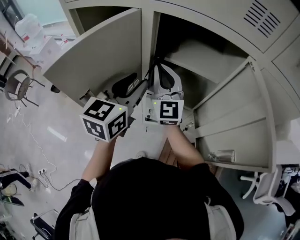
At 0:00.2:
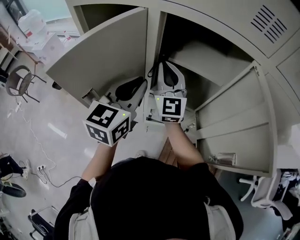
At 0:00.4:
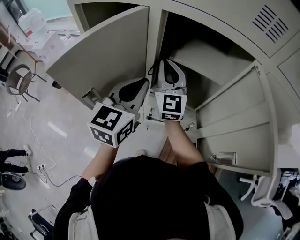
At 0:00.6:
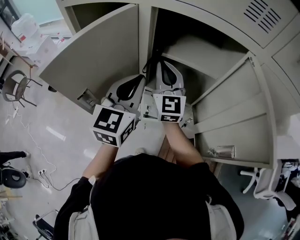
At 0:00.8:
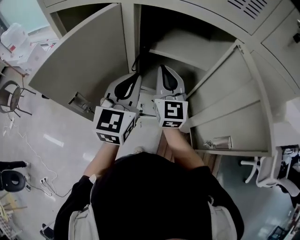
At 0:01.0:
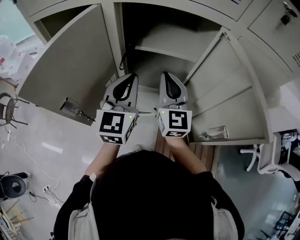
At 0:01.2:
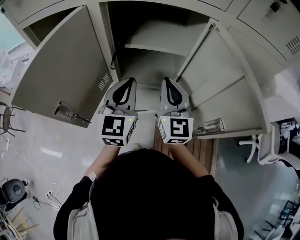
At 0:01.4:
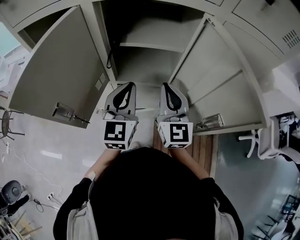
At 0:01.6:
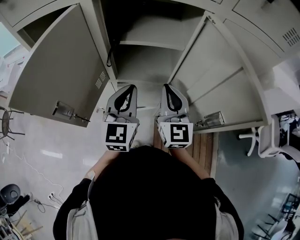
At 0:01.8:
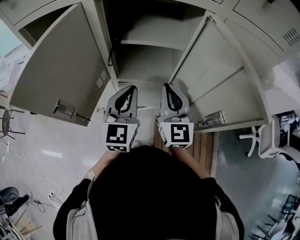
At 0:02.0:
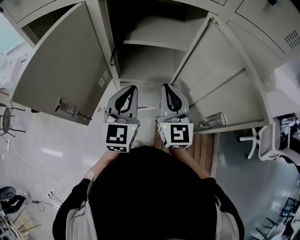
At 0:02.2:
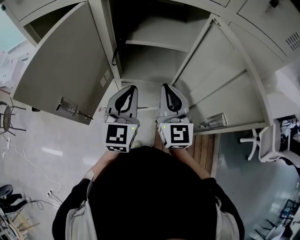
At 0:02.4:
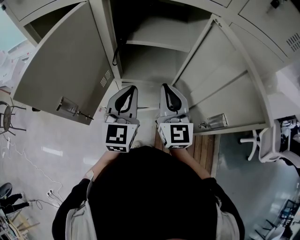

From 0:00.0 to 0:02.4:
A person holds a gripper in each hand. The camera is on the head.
From 0:00.0 to 0:01.2: The right gripper goes approximately 15 cm to the right and backward, and changes its angle by about 20 degrees; the left gripper shifts approximately 5 cm to the right, and closes its fingers.
From 0:01.2 to 0:02.4: The grippers move only a little.

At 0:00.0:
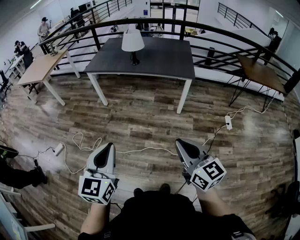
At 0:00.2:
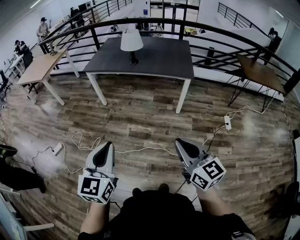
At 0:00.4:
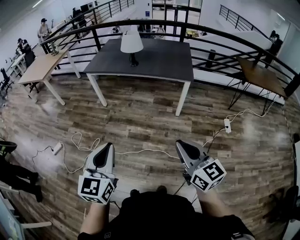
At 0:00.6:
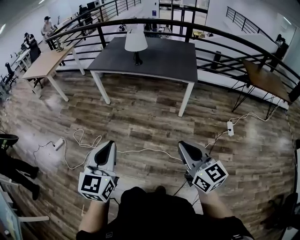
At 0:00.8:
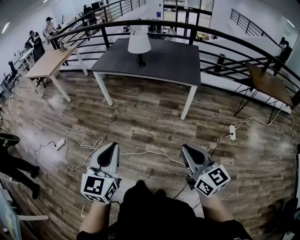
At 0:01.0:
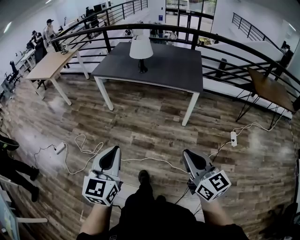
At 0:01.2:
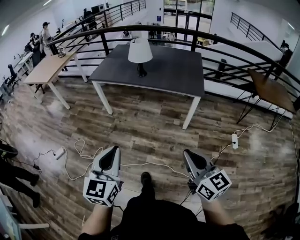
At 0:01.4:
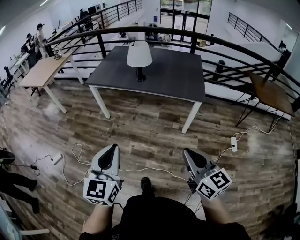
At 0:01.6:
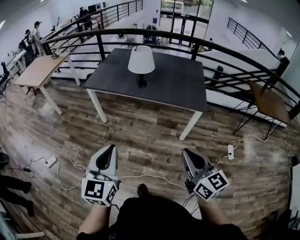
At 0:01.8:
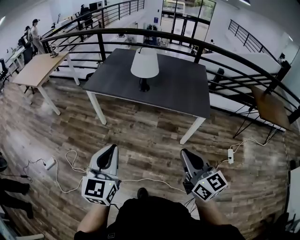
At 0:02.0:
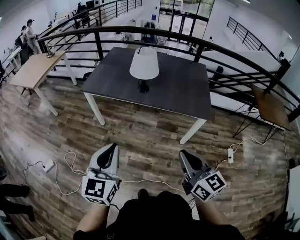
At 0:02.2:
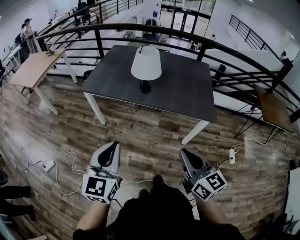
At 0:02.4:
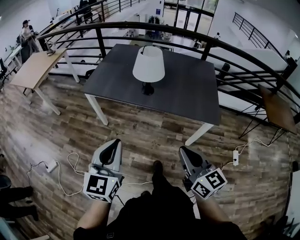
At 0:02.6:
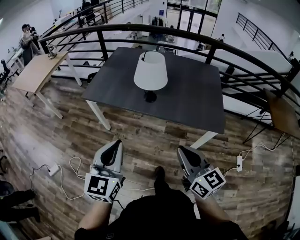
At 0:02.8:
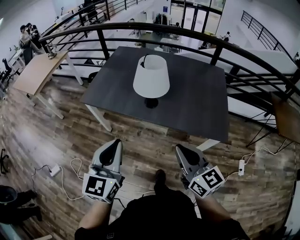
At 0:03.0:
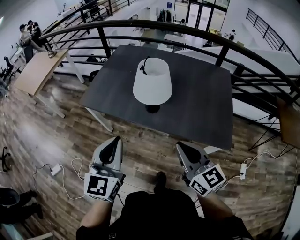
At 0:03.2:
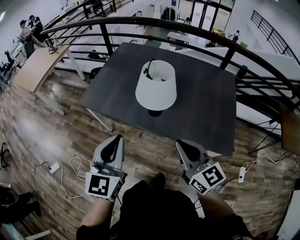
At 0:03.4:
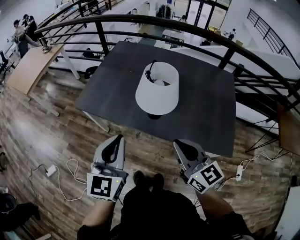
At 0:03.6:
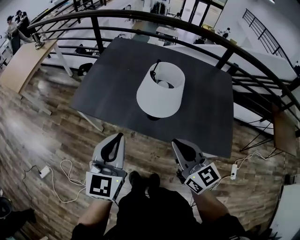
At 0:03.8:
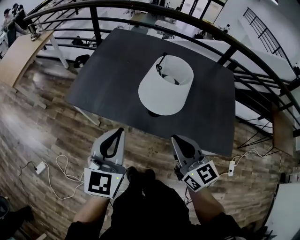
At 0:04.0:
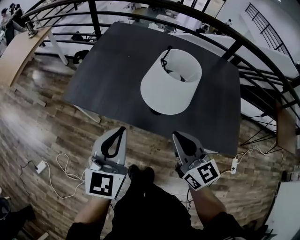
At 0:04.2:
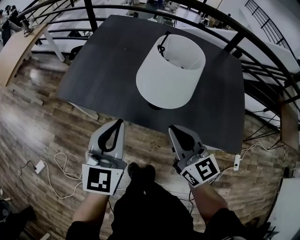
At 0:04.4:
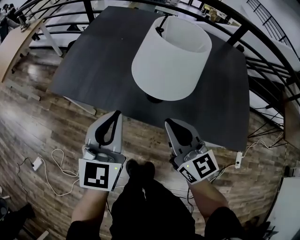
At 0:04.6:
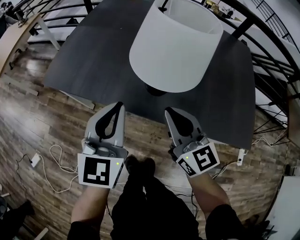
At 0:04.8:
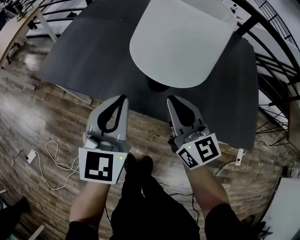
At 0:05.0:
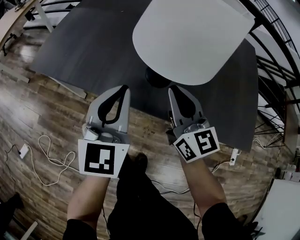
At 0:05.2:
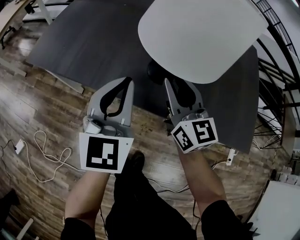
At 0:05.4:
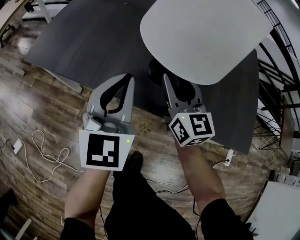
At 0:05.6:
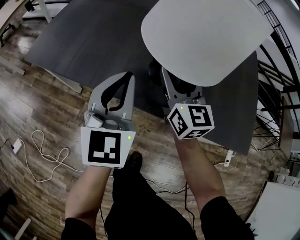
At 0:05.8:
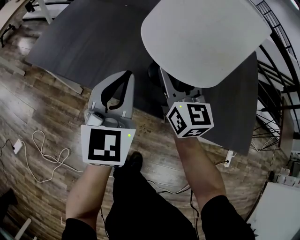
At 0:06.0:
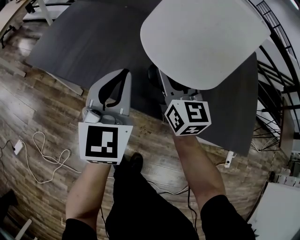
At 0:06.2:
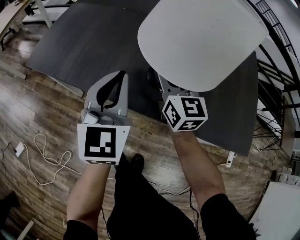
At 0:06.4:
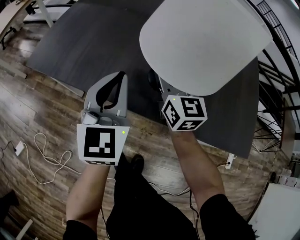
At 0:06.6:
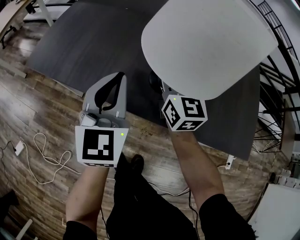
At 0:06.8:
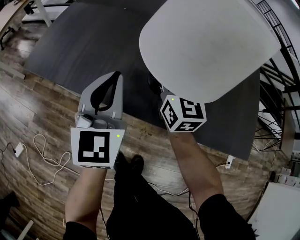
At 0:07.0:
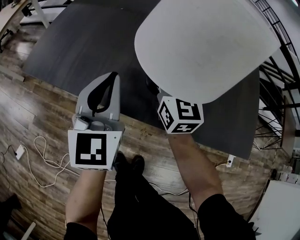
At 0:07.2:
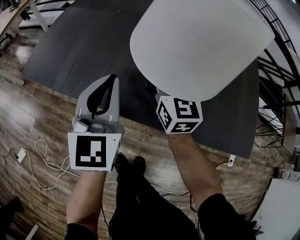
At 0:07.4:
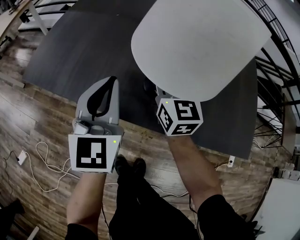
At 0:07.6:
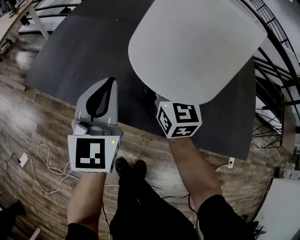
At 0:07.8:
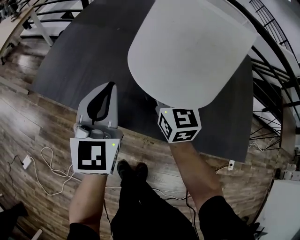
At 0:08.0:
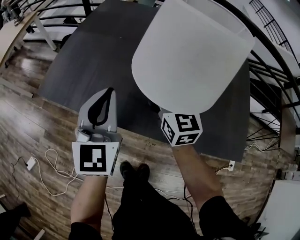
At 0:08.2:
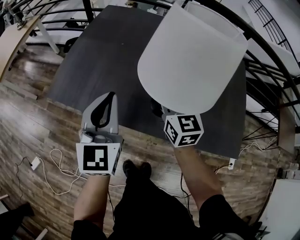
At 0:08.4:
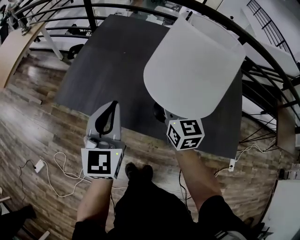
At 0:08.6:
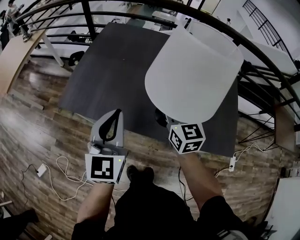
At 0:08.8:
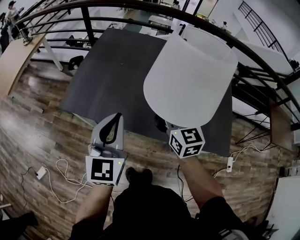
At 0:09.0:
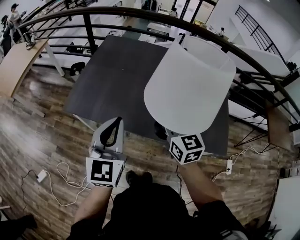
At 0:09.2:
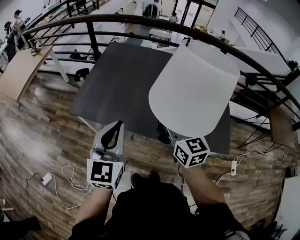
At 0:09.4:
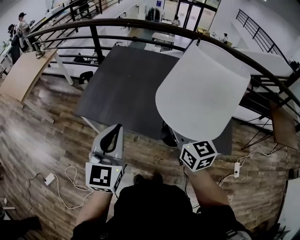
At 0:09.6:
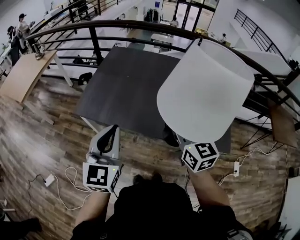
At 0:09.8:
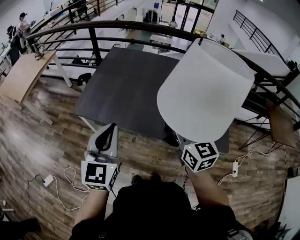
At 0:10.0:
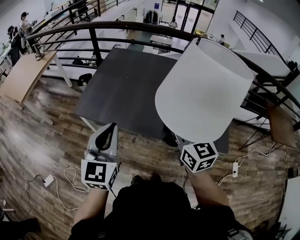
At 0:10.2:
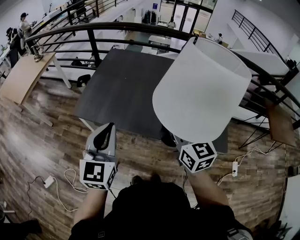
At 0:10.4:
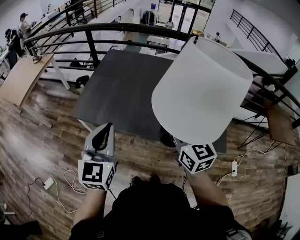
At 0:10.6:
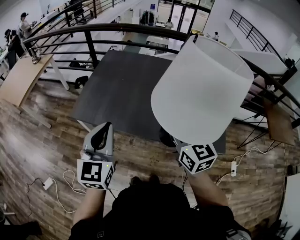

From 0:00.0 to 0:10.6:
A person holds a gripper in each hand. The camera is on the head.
From 0:00.0 to 0:01.6: Both grippers move forward, approximately 25 cm.
From 0:01.6 to 0:03.0: Both grippers travel together forward, approximately 40 cm.
From 0:03.0 to 0:04.6: The grippers both shift forward and downward by about 30 cm.
From 0:04.6 to 0:06.0: The left gripper goes approximately 10 cm forward and downward; the right gripper moves forward and downward, about 15 cm, and opens up.
From 0:06.0 to 0:07.6: The right gripper closes its fingers.
From 0:07.6 to 0:09.0: The two grippers go some 25 cm upward and backward.
From 0:09.0 to 0:10.6: The right gripper moves backward and upward, roughly 15 cm; the left gripper goes about 5 cm backward.

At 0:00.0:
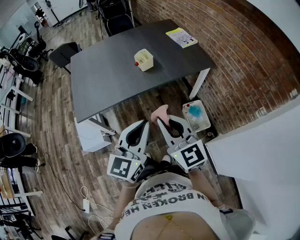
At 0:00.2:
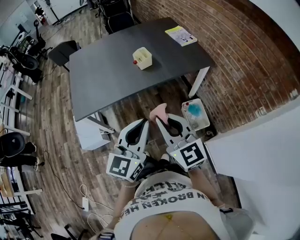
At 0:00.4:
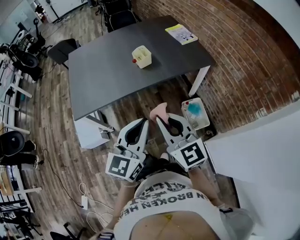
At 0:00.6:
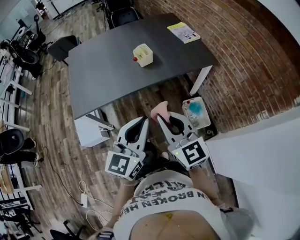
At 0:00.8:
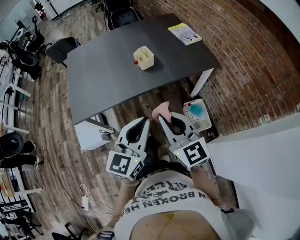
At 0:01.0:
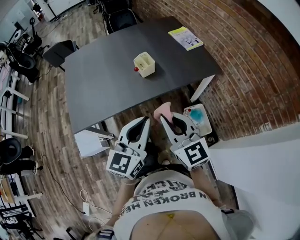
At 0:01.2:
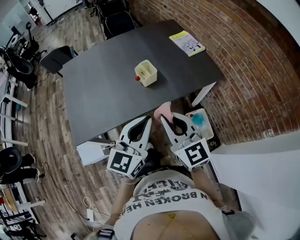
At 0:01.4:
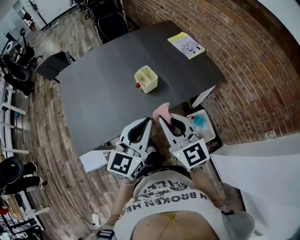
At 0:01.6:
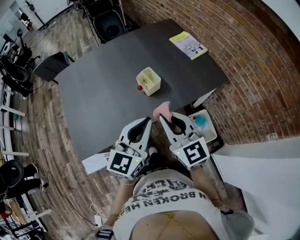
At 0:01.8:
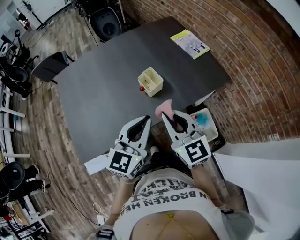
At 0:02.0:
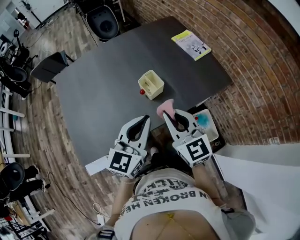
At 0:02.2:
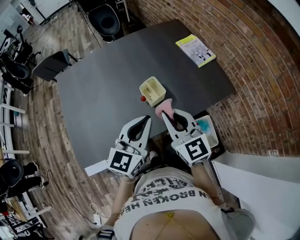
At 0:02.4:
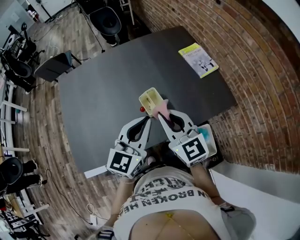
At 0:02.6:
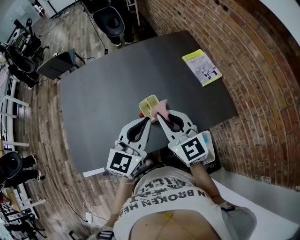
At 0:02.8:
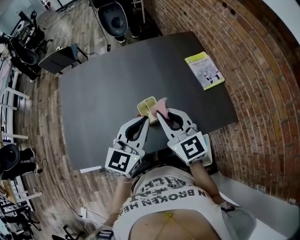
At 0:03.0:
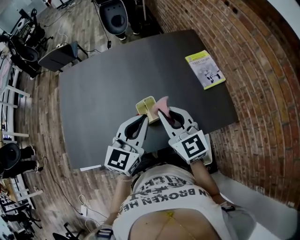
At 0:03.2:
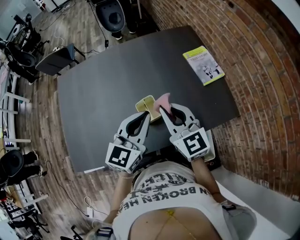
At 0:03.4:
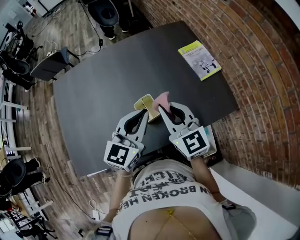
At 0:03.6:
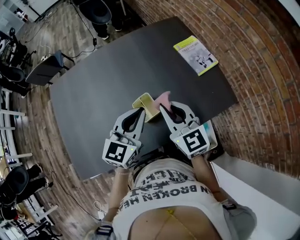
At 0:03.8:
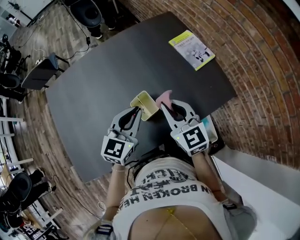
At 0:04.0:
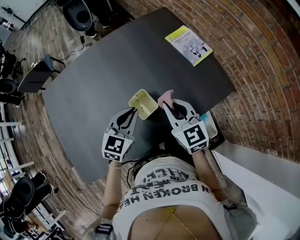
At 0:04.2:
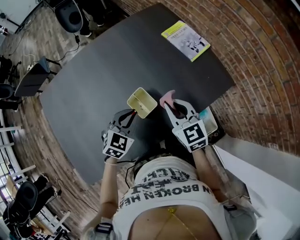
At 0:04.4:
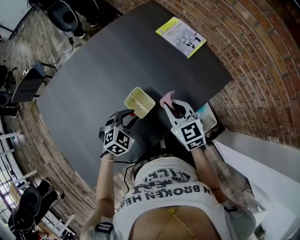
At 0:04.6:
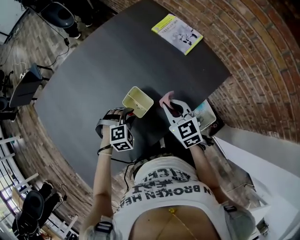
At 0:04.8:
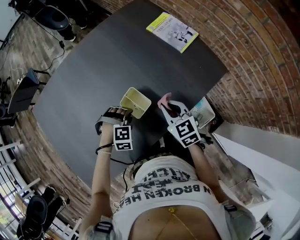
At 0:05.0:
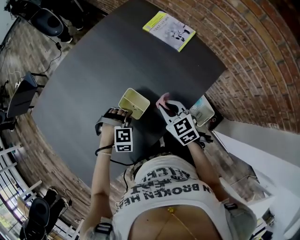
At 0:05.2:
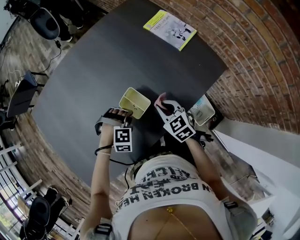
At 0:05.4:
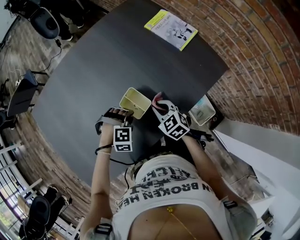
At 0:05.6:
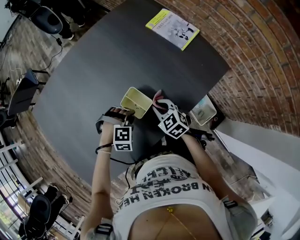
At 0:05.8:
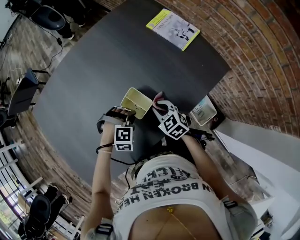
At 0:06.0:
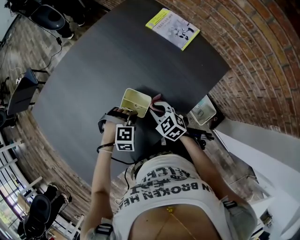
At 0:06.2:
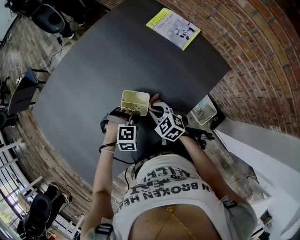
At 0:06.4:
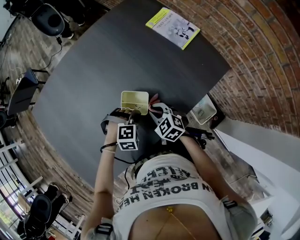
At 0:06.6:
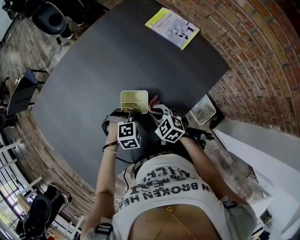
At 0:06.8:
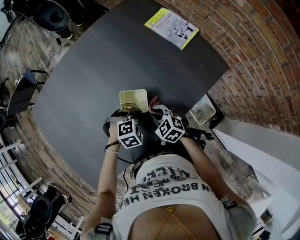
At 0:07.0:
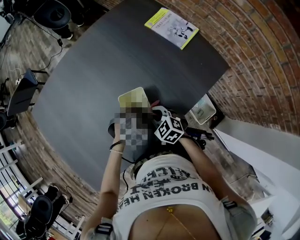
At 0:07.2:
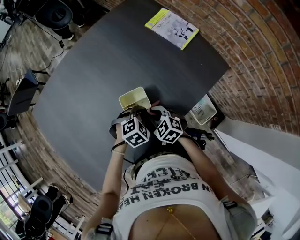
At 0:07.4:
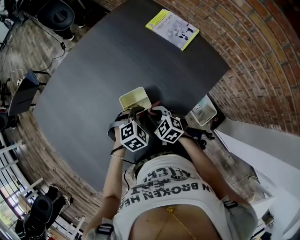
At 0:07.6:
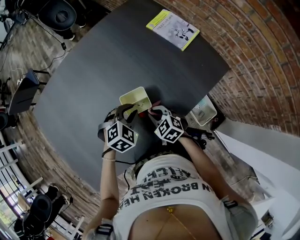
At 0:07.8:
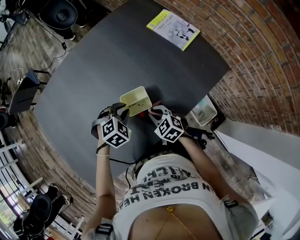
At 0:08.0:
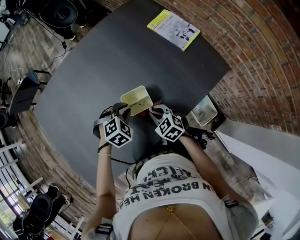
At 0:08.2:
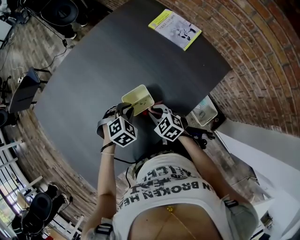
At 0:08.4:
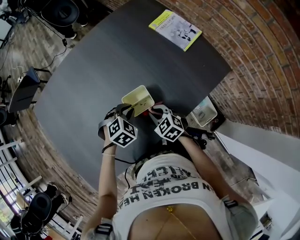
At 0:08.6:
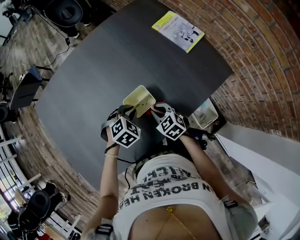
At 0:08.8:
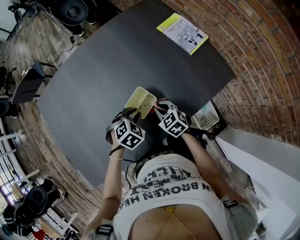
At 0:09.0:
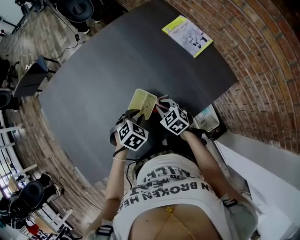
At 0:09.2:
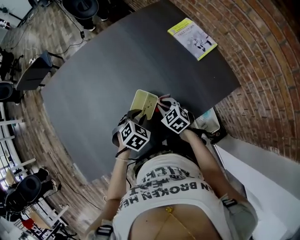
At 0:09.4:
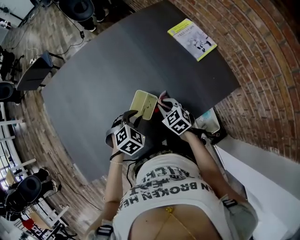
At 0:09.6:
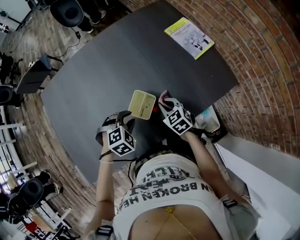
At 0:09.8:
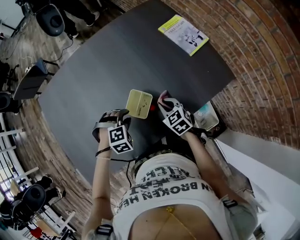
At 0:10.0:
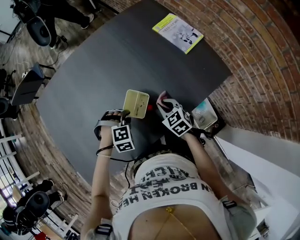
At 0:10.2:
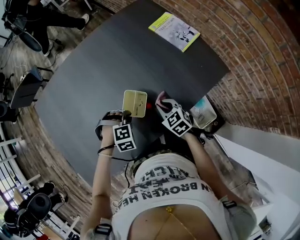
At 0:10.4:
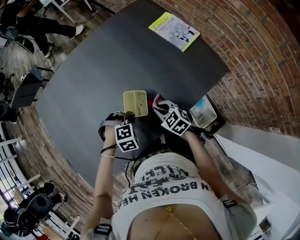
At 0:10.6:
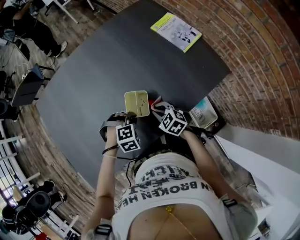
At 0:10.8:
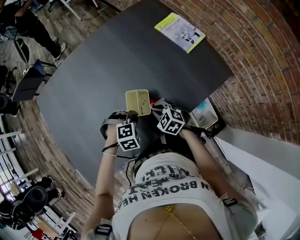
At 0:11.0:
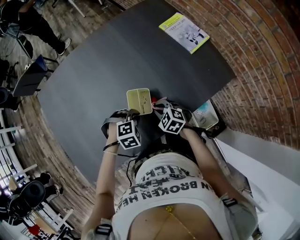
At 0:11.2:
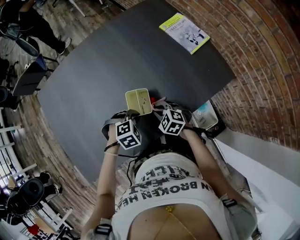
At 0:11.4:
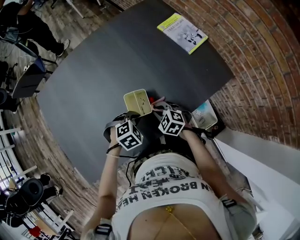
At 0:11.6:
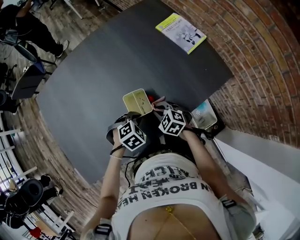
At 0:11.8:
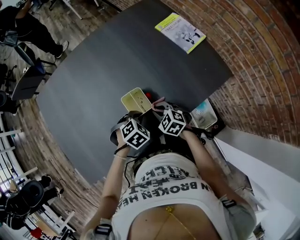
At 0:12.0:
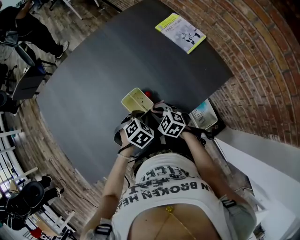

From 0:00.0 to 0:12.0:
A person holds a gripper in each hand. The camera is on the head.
From 0:00.0 to 0:01.6: The grippers both shift forward by approximately 30 cm.
From 0:01.6 to 0:03.0: Both grippers move forward, some 25 cm.
From 0:03.0 to 0:04.4: The left gripper moves downward, roughly 20 cm, tips its fingers downward by approximately 40 degrees, and opens; the right gripper shifts some 15 cm downward, and rotates some 30 degrees.
From 0:04.4 to 0:06.0: The right gripper is displaced downward by about 15 cm, and changes its angle by roughly 20 degrees. The left gripper is displaced downward by some 5 cm, and twists approximately 40 degrees clockwise, seen from behind.
From 0:06.0 to 0:07.6: The left gripper goes about 5 cm upward, and changes its angle by approximately 40 degrees.
From 0:07.6 to 0:09.0: The grippers stay close to where they were, moving slightly.
From 0:09.0 to 0:10.4: The left gripper swivels some 40 degrees.
From 0:10.4 to 0:12.0: The left gripper rotates some 40 degrees.
